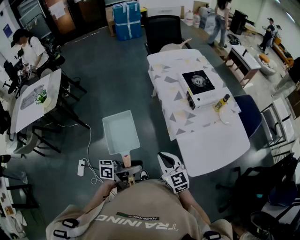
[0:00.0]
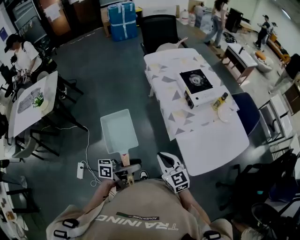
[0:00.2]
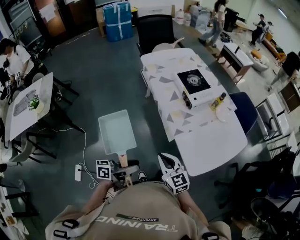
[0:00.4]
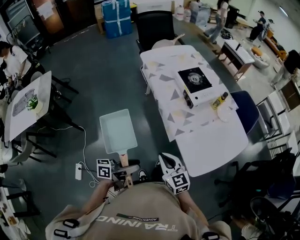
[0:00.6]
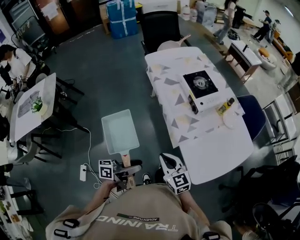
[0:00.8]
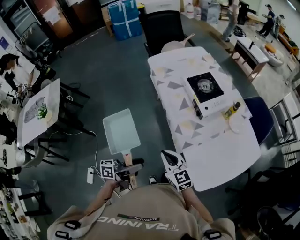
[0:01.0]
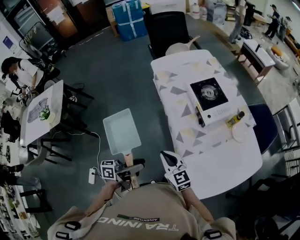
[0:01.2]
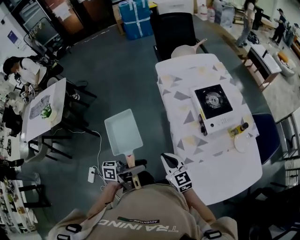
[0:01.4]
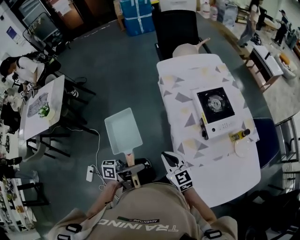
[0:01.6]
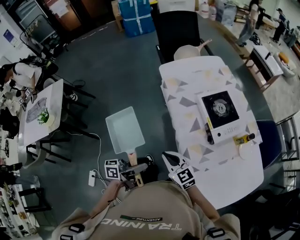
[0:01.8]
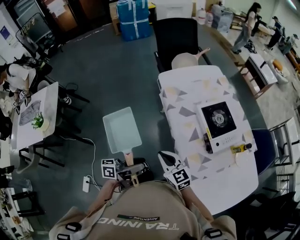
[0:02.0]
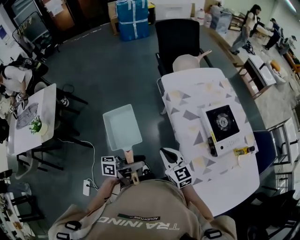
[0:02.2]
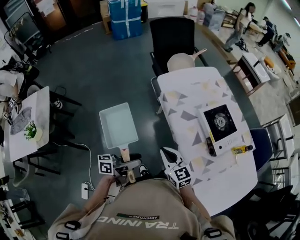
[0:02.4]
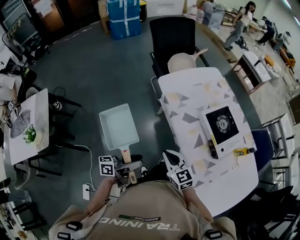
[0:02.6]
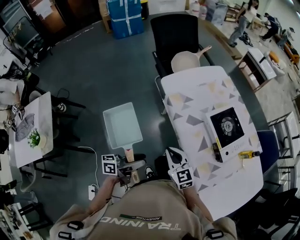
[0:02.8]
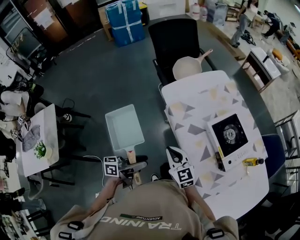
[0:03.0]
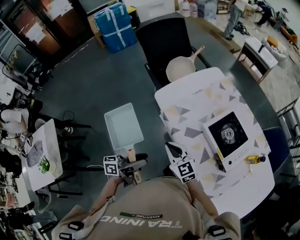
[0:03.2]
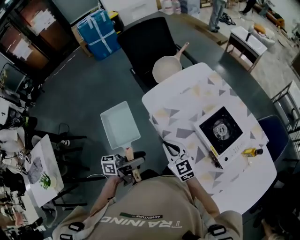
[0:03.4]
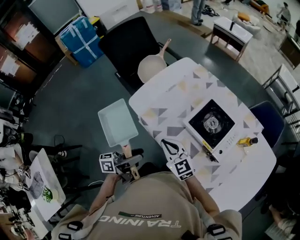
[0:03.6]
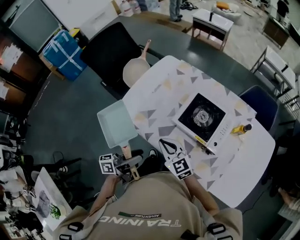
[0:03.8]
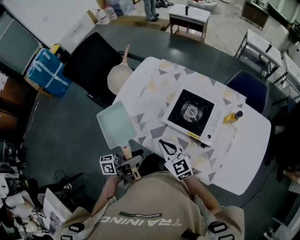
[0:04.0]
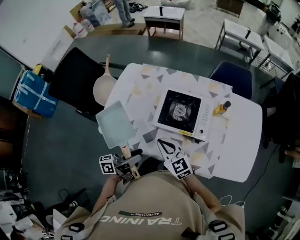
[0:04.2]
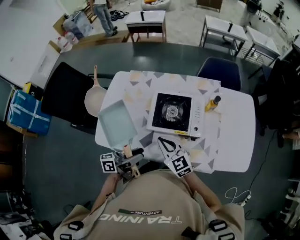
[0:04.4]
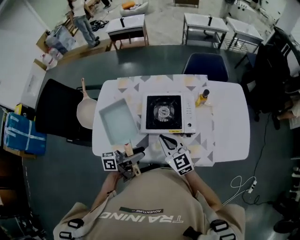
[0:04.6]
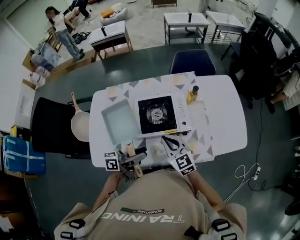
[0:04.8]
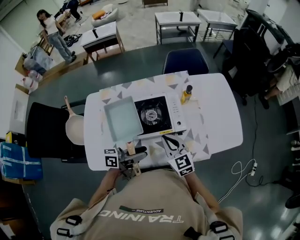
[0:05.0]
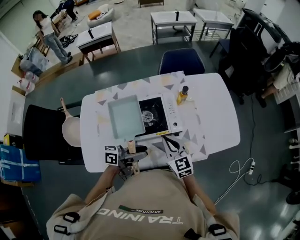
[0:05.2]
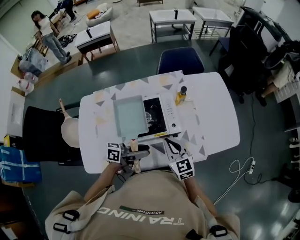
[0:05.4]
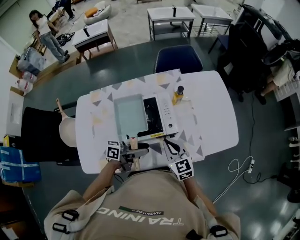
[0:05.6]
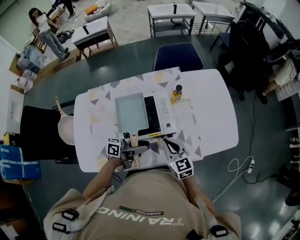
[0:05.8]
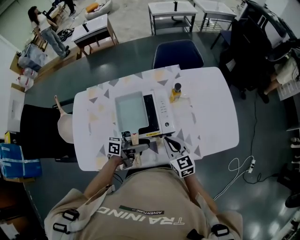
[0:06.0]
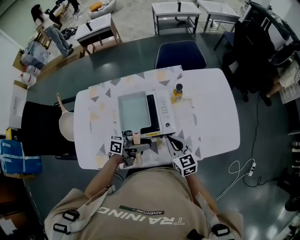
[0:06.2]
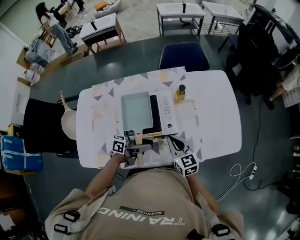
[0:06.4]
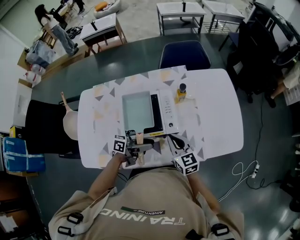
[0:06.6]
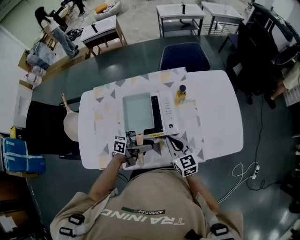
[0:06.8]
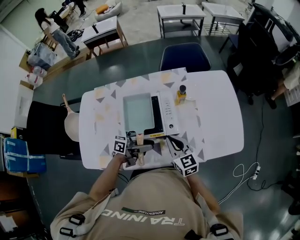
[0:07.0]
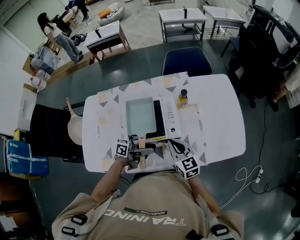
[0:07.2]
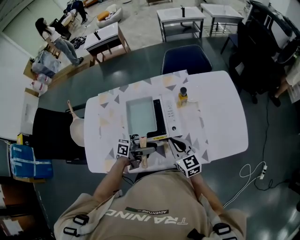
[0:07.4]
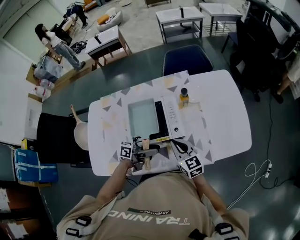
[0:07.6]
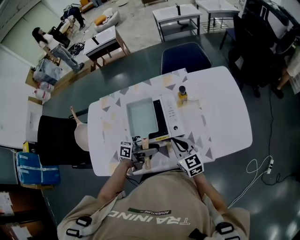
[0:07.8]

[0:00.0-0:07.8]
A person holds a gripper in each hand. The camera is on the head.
0.0 to 1.6 s: The grippers both shift forward by approximately 25 cm.
1.6 to 3.2 s: The two grippers go roughly 35 cm forward and to the left.
3.2 to 4.6 s: The left gripper changes place by about 25 cm, and rotates approximately 60 degrees. The right gripper shifts by approximately 25 cm, and turns by about 60 degrees.
4.6 to 6.2 s: The left gripper heads forward, to the right and downward, covering roughly 20 cm, and turns by about 30 degrees; the right gripper moves to the right, forward and downward, about 15 cm, and turns by some 20 degrees.
6.2 to 7.8 s: There are only small adjustments of the grippers.

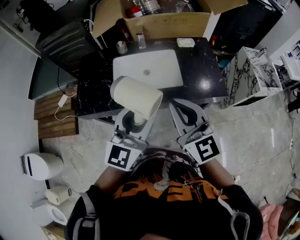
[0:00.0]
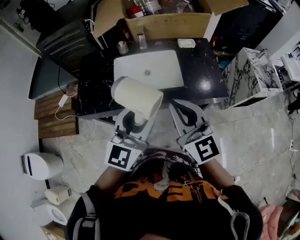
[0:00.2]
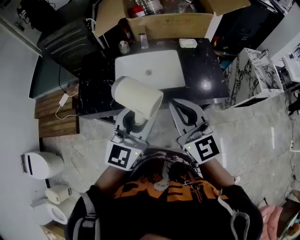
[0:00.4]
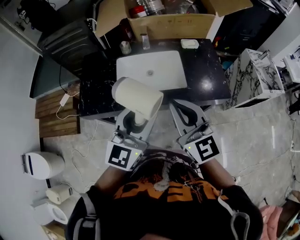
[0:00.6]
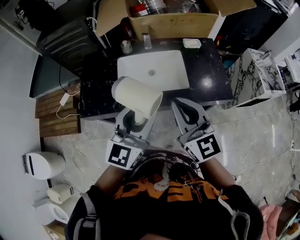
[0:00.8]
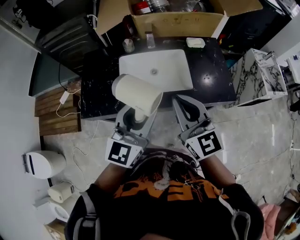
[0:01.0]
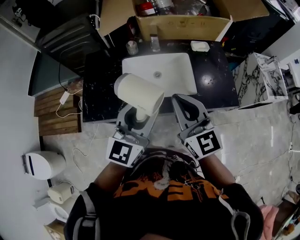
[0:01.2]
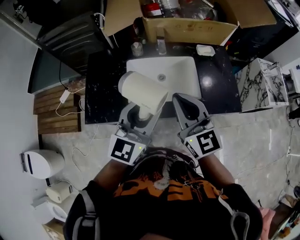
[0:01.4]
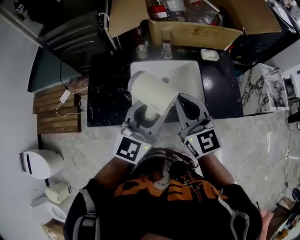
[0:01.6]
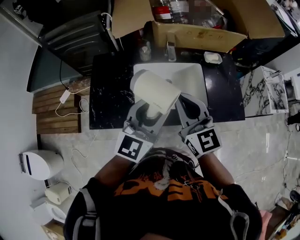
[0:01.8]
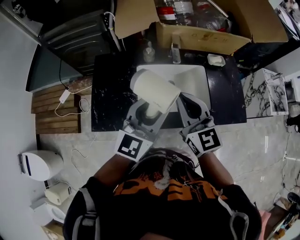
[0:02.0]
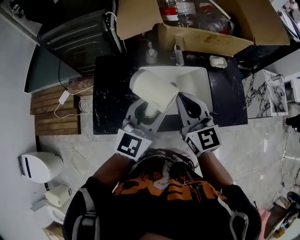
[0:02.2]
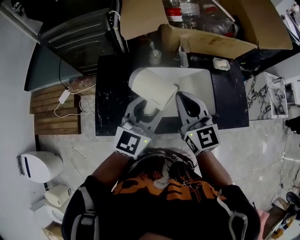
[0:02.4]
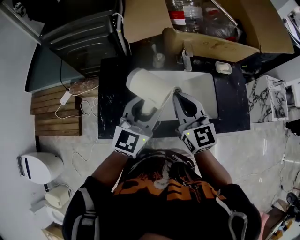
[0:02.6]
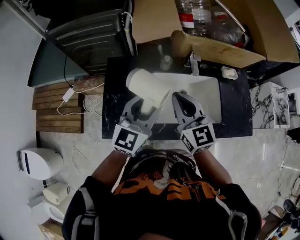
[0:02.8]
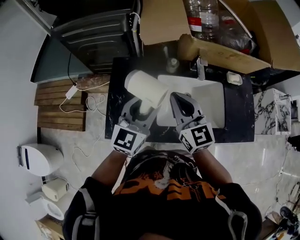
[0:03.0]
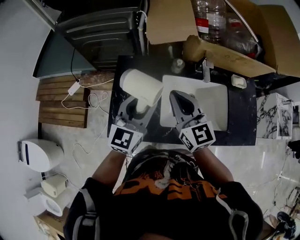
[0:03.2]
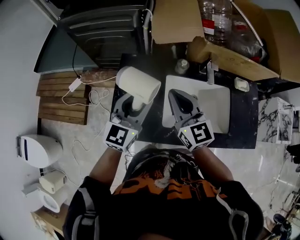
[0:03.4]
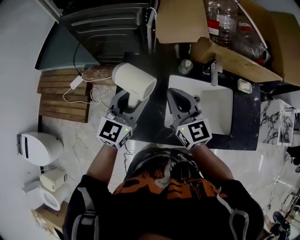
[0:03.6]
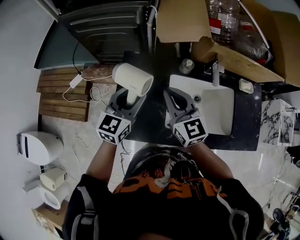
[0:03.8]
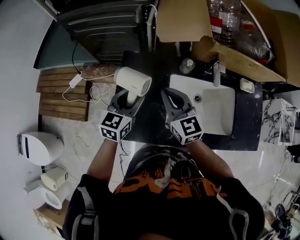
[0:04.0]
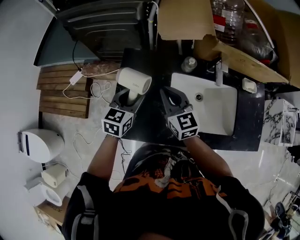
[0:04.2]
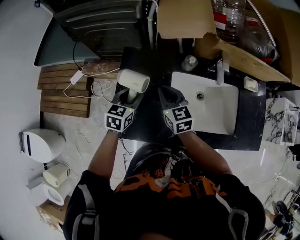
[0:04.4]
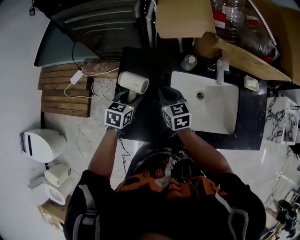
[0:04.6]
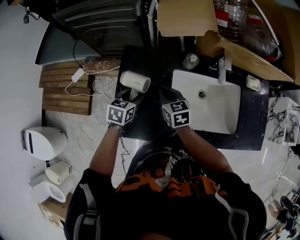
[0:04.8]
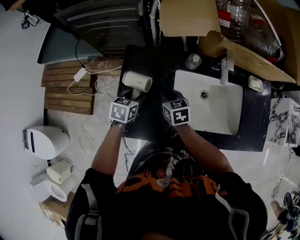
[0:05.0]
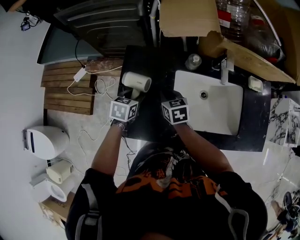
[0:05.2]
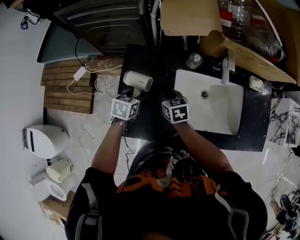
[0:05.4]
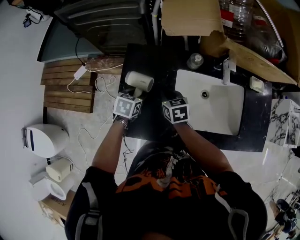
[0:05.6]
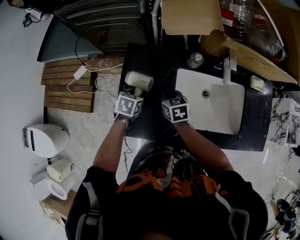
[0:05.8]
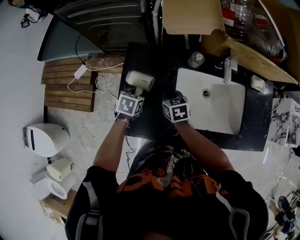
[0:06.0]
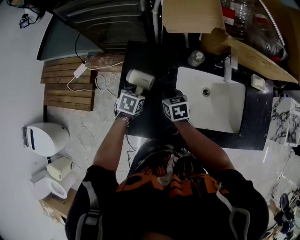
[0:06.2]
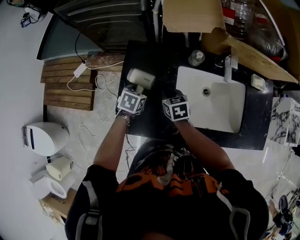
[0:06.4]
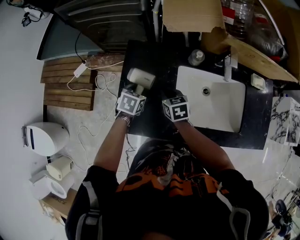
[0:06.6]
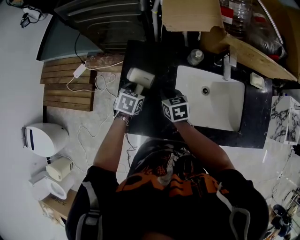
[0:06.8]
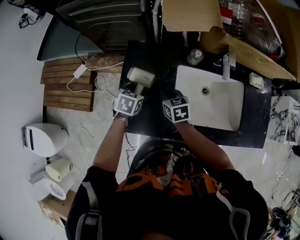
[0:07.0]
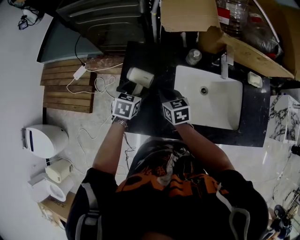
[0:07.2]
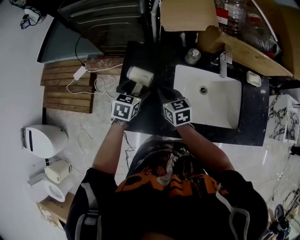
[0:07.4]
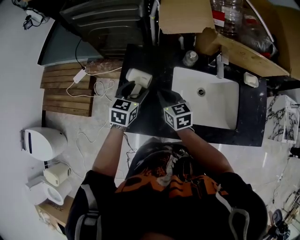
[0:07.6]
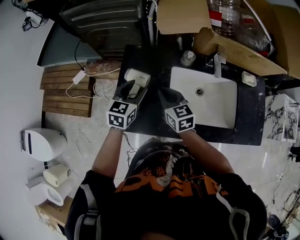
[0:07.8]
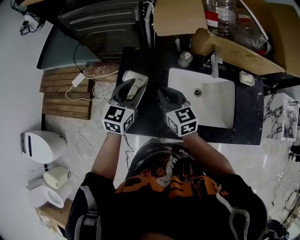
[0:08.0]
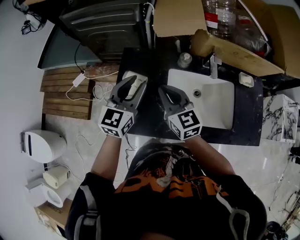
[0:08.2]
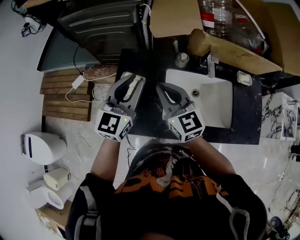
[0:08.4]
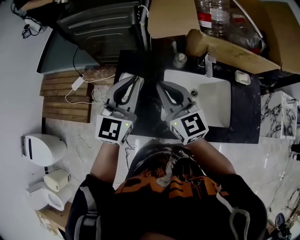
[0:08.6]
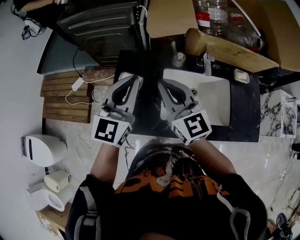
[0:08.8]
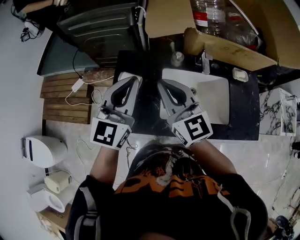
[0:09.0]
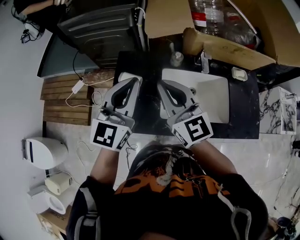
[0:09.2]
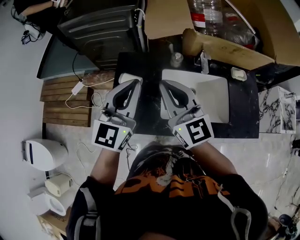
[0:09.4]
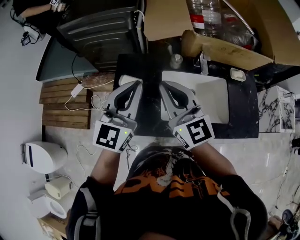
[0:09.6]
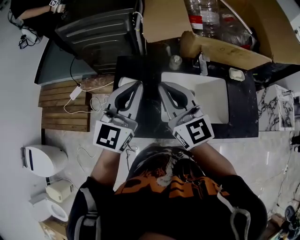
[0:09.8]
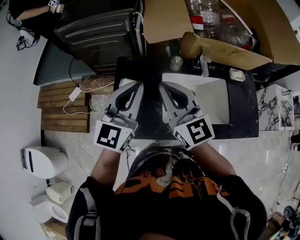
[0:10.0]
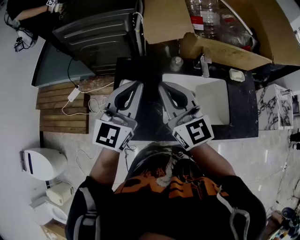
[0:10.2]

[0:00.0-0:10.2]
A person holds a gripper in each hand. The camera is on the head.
0.0 to 1.4 s: The two grippers go approximately 15 cm forward and to the left.
1.4 to 3.0 s: Both grippers travel together to the left and forward, some 25 cm.
3.0 to 4.4 s: The two grippers go roughly 20 cm downward, to the left and forward. The left gripper angles its fingers downward, by about 30 degrees.
4.4 to 5.8 s: The grippers both shift downward by approximately 10 cm. The left gripper rotates about 20 degrees, while the right gripper rotates about 20 degrees.
5.8 to 7.2 s: The left gripper opens.
7.2 to 8.8 s: The grippers both shift upward by about 30 cm. The left gripper angles its fingers upward, by roughly 50 degrees, and closes its fingers; the right gripper tilts its fingers approximately 30 degrees upward.
8.8 to 10.2 s: There are only small adjustments of the grippers.

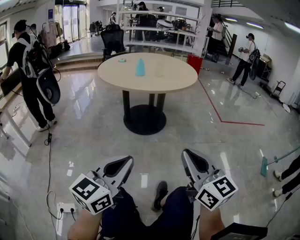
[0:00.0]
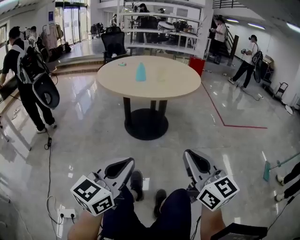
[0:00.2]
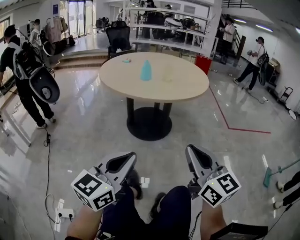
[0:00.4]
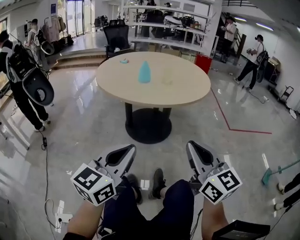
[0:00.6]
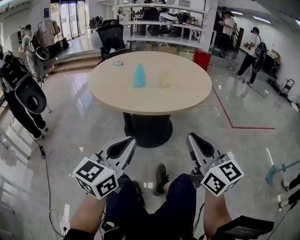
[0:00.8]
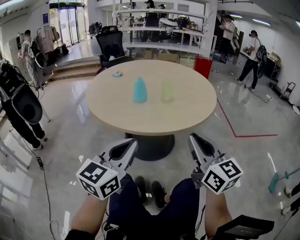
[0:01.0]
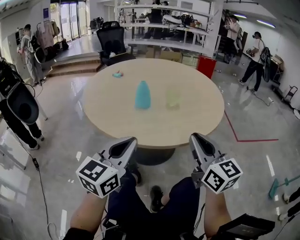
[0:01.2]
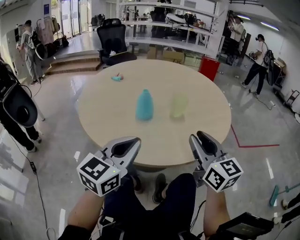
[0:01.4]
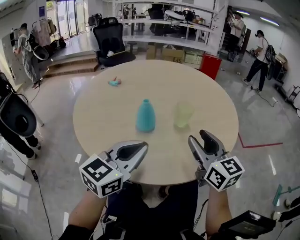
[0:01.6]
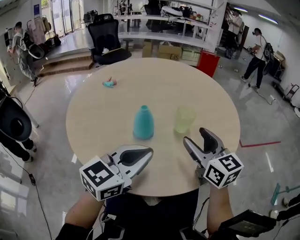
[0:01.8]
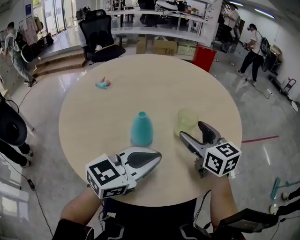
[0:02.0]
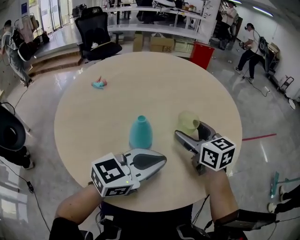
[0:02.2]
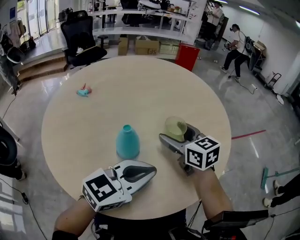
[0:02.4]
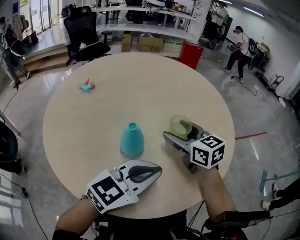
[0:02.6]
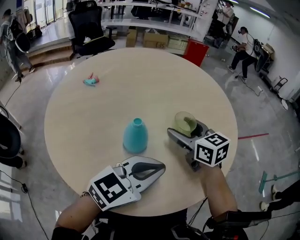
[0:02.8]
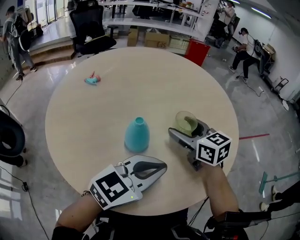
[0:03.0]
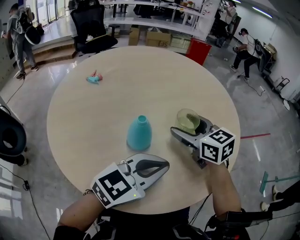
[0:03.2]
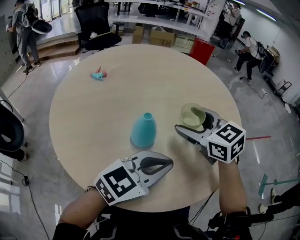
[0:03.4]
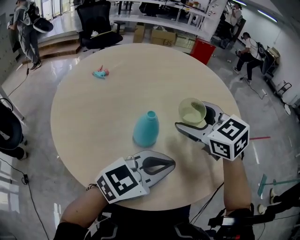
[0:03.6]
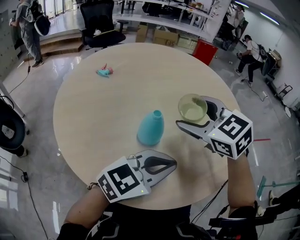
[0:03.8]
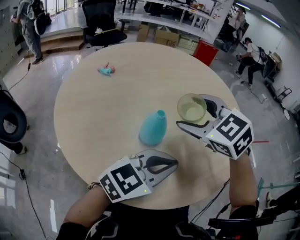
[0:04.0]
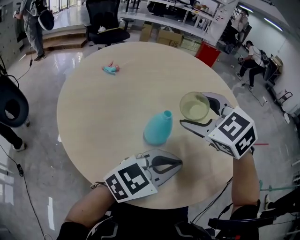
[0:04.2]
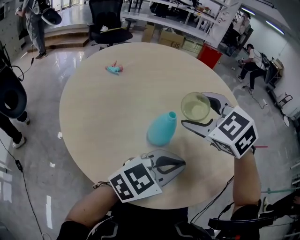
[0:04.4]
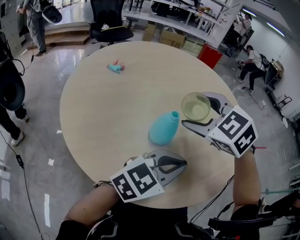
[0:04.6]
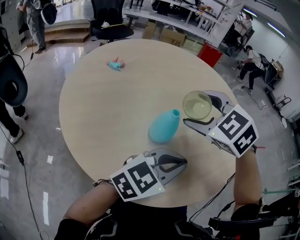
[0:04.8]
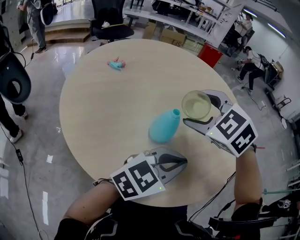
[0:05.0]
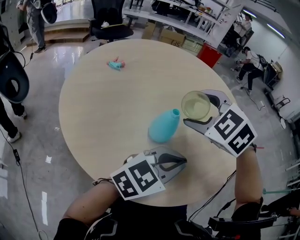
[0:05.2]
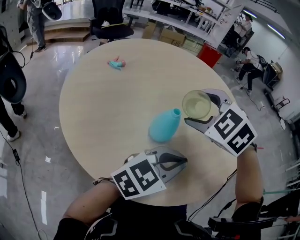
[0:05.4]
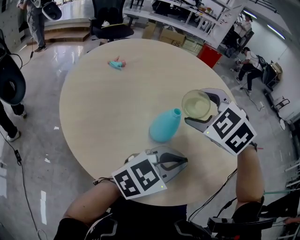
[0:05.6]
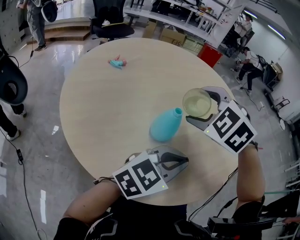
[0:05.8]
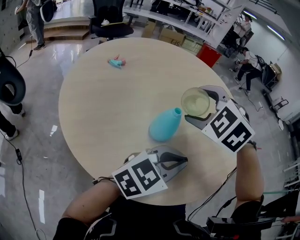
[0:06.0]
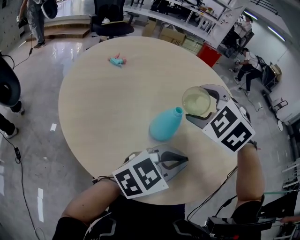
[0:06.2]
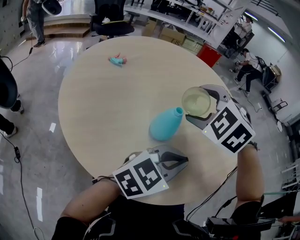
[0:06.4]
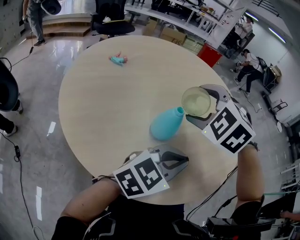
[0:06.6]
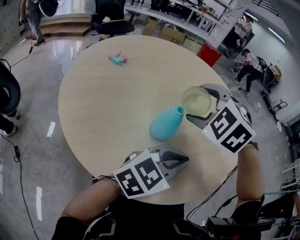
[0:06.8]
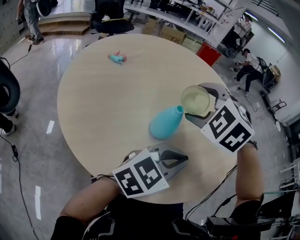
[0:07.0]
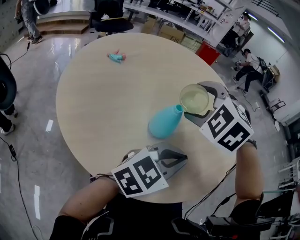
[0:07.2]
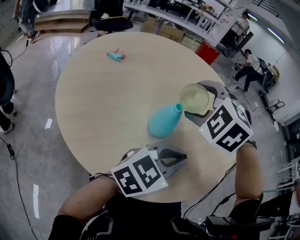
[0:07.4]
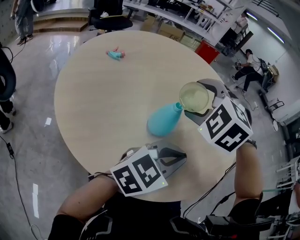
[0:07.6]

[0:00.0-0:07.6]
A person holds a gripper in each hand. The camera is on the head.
0.0 to 1.6 s: Both grippers are carried forward, about 60 cm. The right gripper opens its fingers.
1.6 to 3.0 s: The left gripper shifts some 10 cm forward and to the right, and turns by approximately 30 degrees; the right gripper travels forward, to the left and downward by approximately 15 cm, and opens its fingers.
3.0 to 4.6 s: The right gripper travels to the left, upward and backward by about 15 cm, and rotates around the line of its fingers by approximately 40 degrees, counterclockwise from behind.
4.6 to 6.0 s: The grippers stay close to where they were, moving slightly.
6.0 to 7.6 s: There are only small adjustments of the grippers.
